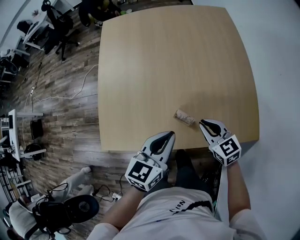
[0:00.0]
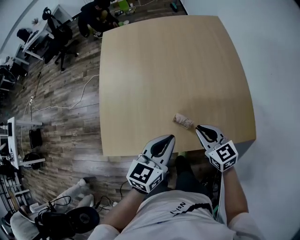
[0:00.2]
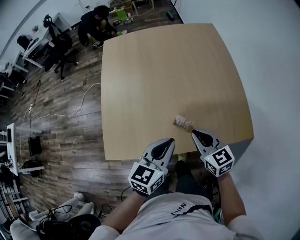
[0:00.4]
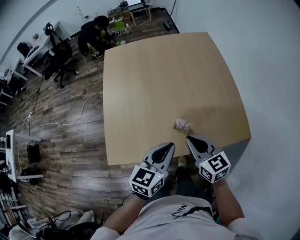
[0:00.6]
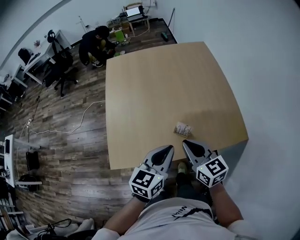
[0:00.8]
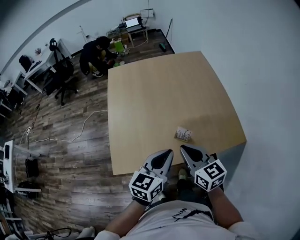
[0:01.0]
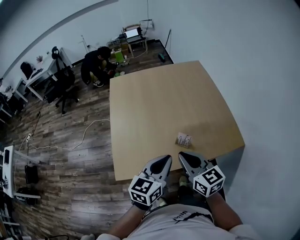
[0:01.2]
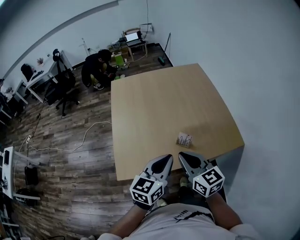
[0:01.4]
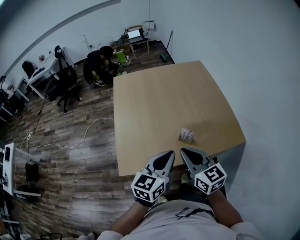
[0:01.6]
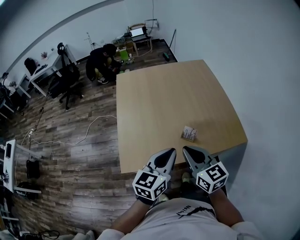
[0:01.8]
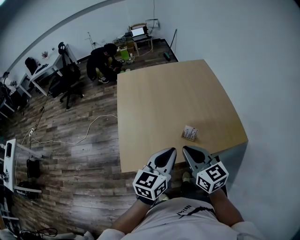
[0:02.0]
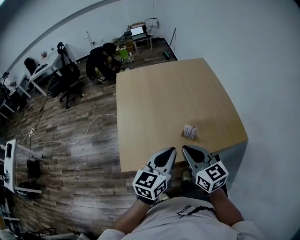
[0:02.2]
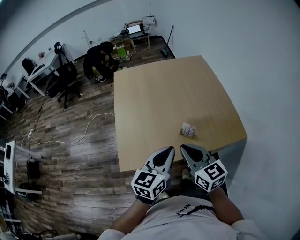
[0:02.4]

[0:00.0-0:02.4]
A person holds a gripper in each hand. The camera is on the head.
0:00.0 to 0:01.2: The right gripper heads upward, to the left and backward, covering some 30 cm, and changes its angle by some 20 degrees. Meanwhile the left gripper is displaced upward, backward and to the left by approximately 15 cm.
0:01.2 to 0:02.4: There are only small adjustments of the grippers.

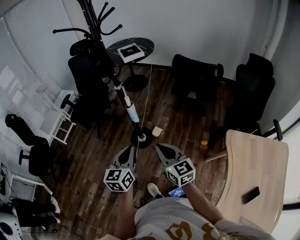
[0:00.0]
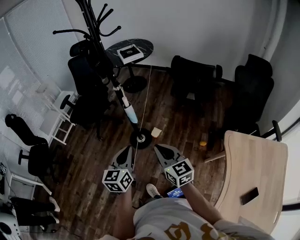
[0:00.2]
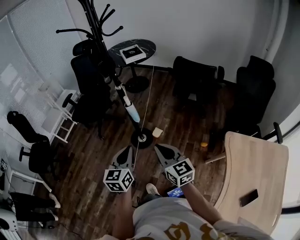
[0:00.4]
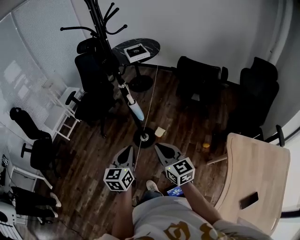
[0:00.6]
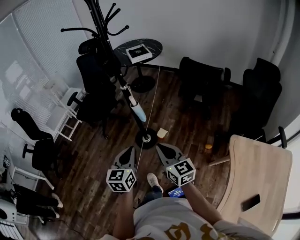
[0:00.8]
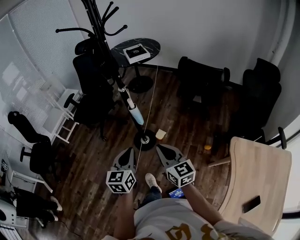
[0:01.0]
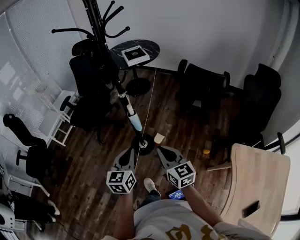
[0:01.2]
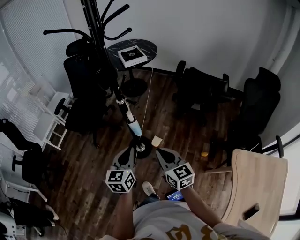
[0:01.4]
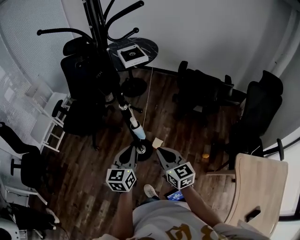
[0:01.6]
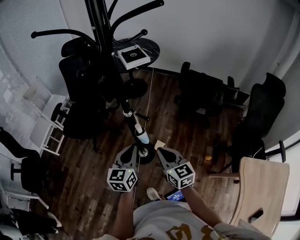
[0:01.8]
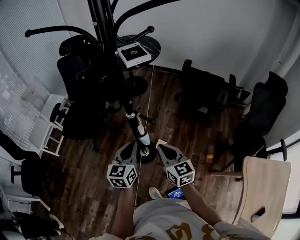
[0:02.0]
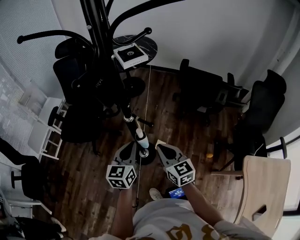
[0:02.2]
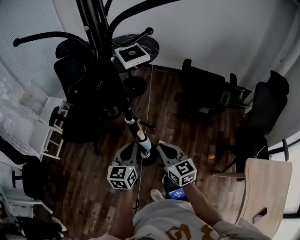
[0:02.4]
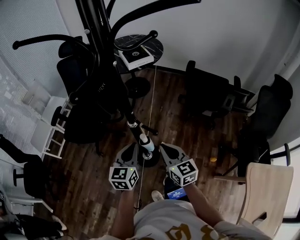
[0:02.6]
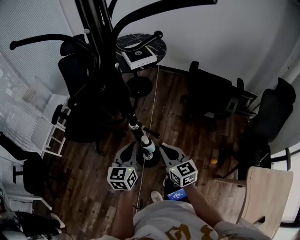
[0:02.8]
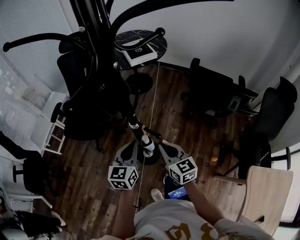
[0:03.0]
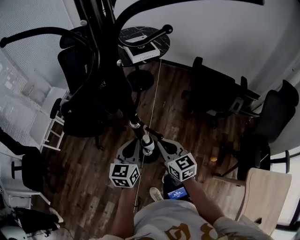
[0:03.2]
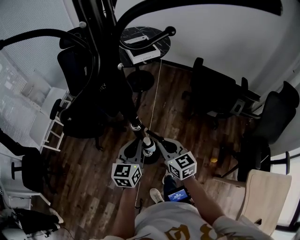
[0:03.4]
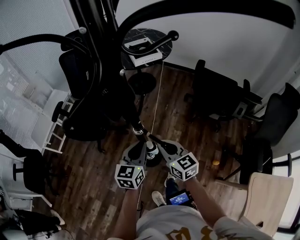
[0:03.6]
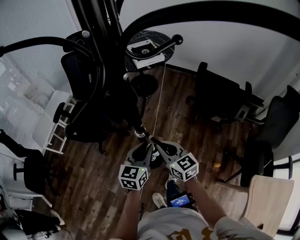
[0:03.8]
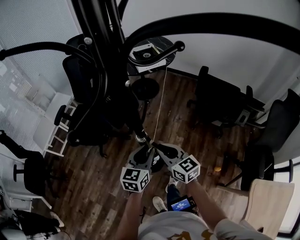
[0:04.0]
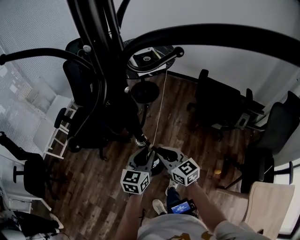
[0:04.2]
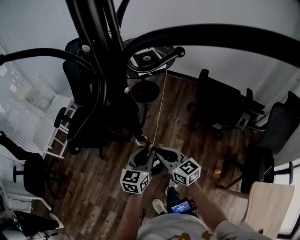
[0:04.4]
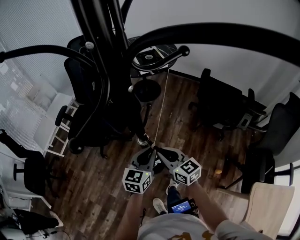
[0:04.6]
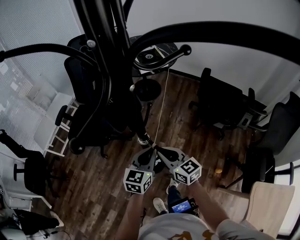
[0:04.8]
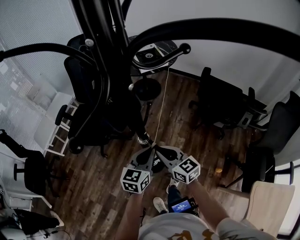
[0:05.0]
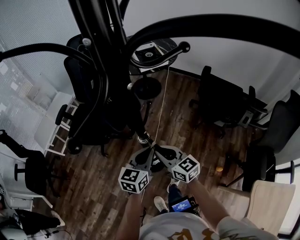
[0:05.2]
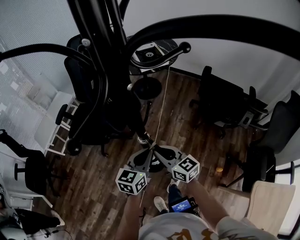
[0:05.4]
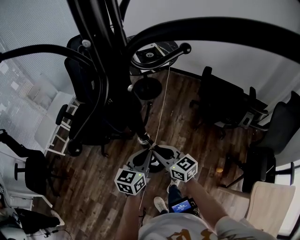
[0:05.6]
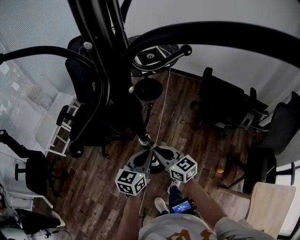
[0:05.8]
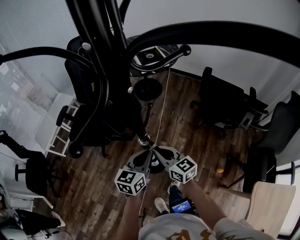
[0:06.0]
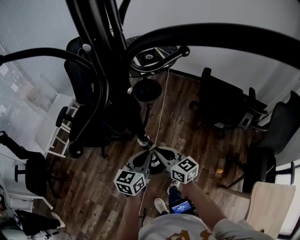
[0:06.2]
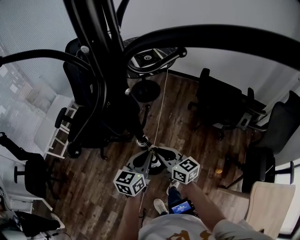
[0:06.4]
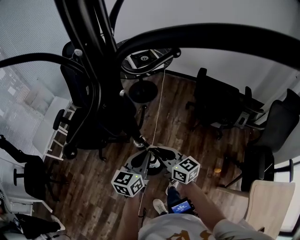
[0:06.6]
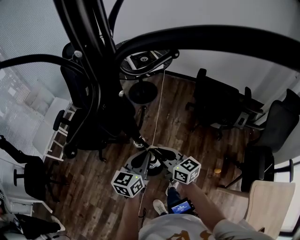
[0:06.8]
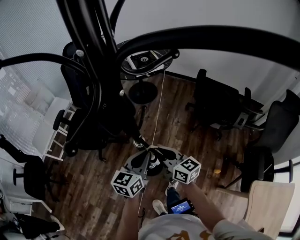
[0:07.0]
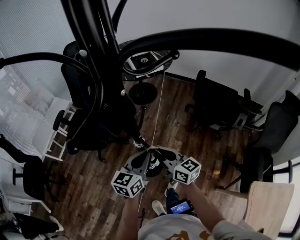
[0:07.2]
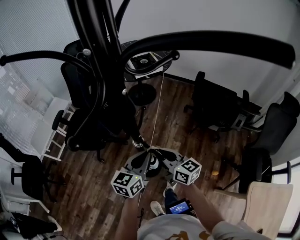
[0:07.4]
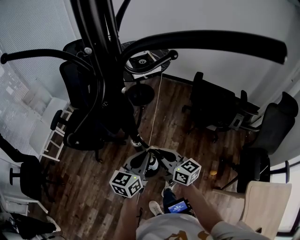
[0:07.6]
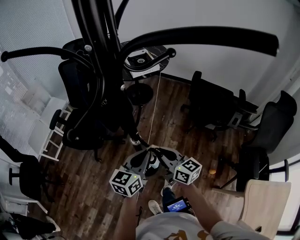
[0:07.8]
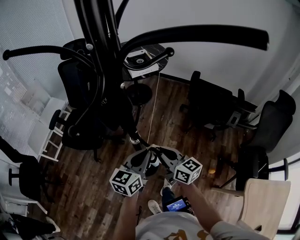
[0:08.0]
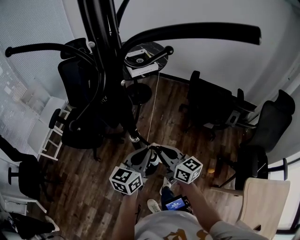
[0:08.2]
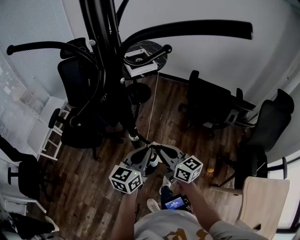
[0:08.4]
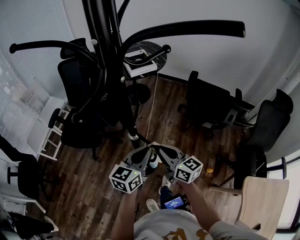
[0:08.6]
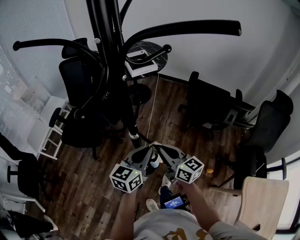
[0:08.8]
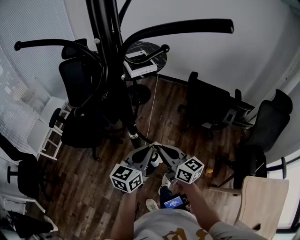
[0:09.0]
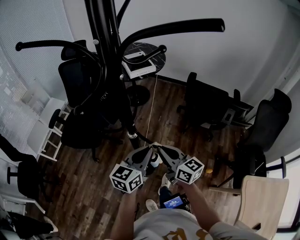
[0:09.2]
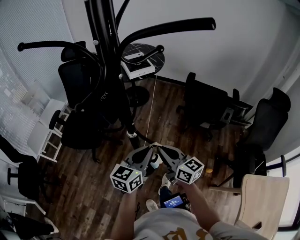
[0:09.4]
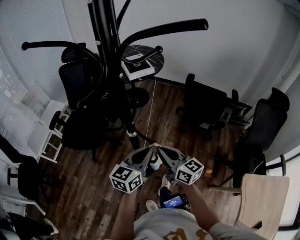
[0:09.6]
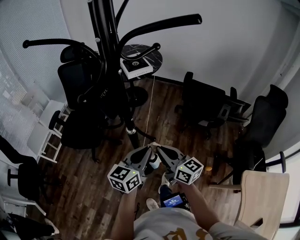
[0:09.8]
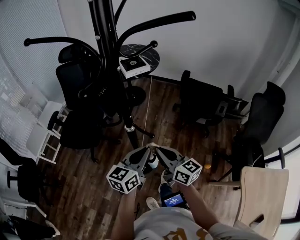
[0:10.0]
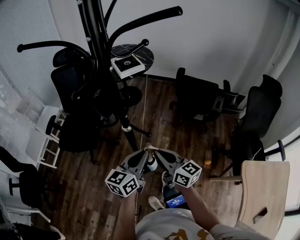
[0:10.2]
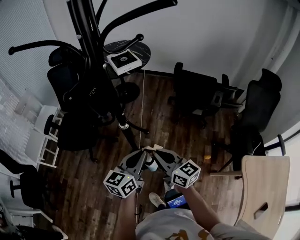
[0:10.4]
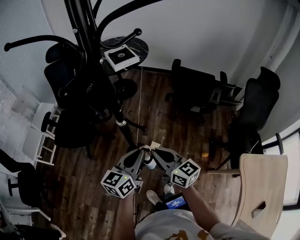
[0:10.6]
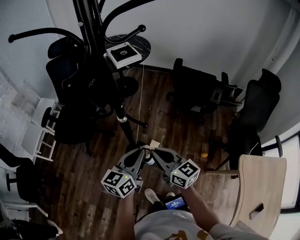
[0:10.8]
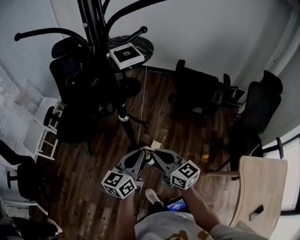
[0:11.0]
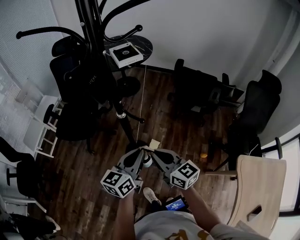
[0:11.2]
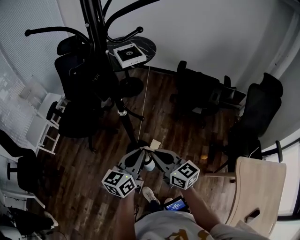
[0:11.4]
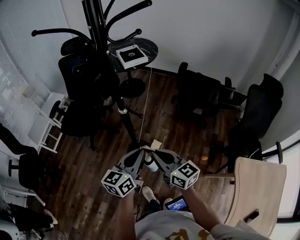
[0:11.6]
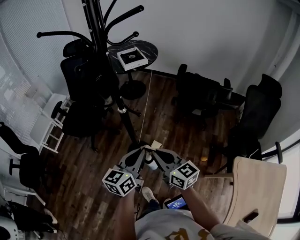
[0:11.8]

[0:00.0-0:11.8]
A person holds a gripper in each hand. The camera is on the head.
0:00.0 to 0:01.4: The grippers both shift forward by roughly 15 cm.
0:01.4 to 0:03.0: The two grippers go about 25 cm forward.
0:03.0 to 0:04.4: The right gripper moves forward, some 5 cm. The left gripper moves about 5 cm.
0:04.4 to 0:07.4: There are only small adjustments of the grippers.
0:07.4 to 0:08.8: The left gripper changes place by about 5 cm; the right gripper ends up approximately 5 cm from where it was.
0:08.8 to 0:10.4: The two grippers go about 10 cm backward.
0:10.4 to 0:11.8: The grippers both shift backward by approximately 10 cm.

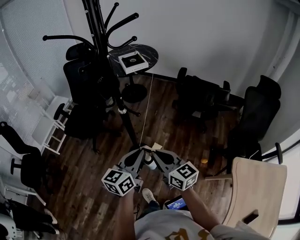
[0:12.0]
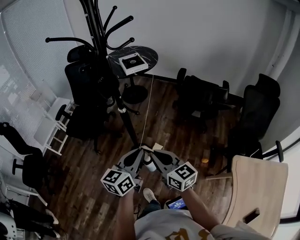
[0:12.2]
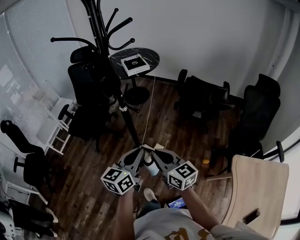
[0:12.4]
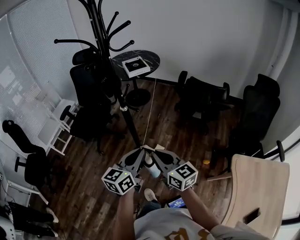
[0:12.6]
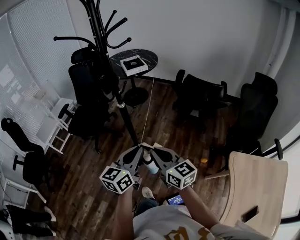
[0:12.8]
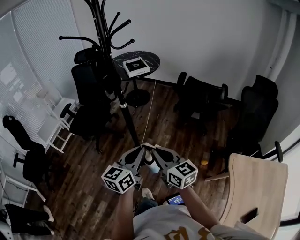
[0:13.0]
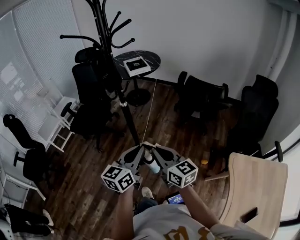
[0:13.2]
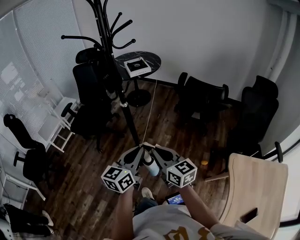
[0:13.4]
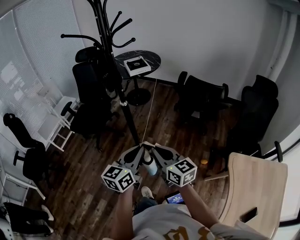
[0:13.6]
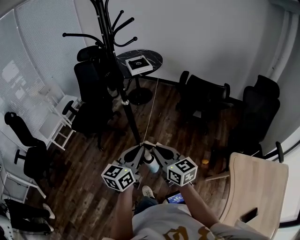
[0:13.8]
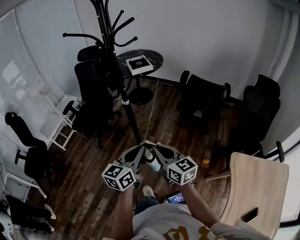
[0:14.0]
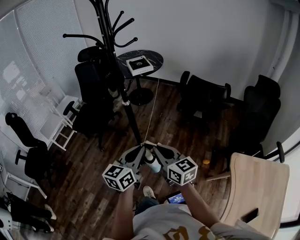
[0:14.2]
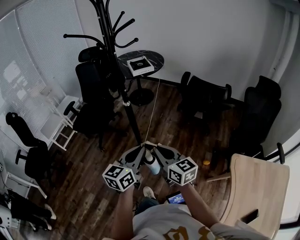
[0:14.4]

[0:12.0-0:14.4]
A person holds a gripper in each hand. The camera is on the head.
0:12.0 to 0:13.2: The grippers both shift backward by some 10 cm.
0:13.2 to 0:14.4: The grippers stay close to where they were, moving slightly.

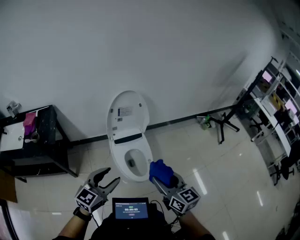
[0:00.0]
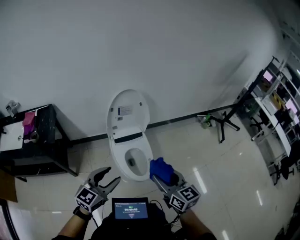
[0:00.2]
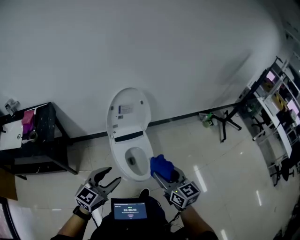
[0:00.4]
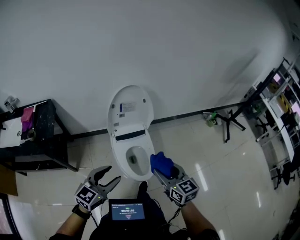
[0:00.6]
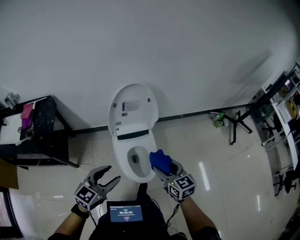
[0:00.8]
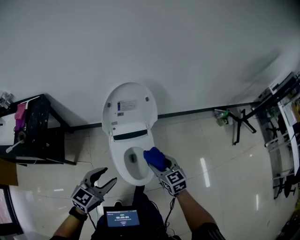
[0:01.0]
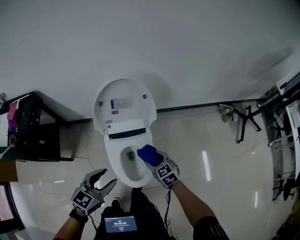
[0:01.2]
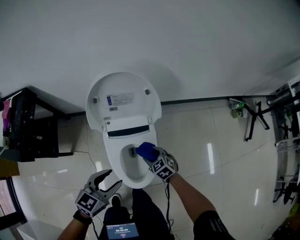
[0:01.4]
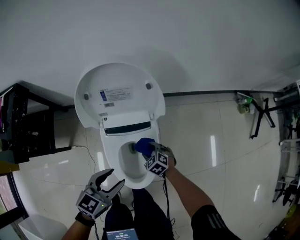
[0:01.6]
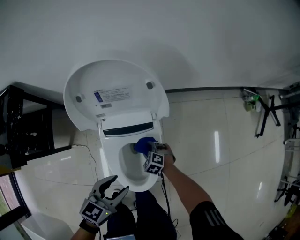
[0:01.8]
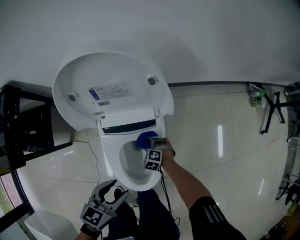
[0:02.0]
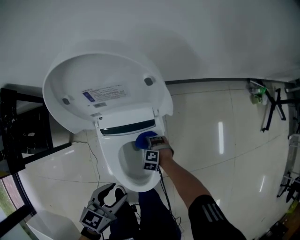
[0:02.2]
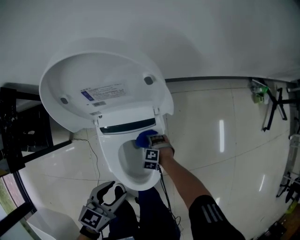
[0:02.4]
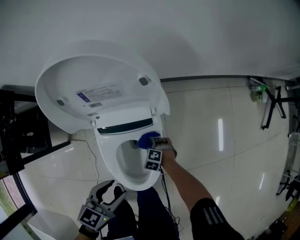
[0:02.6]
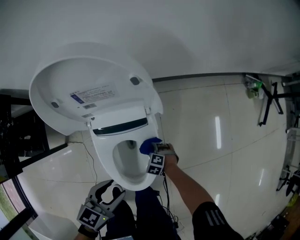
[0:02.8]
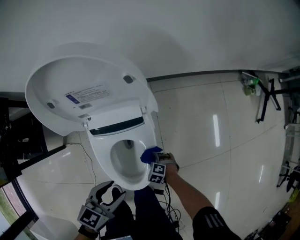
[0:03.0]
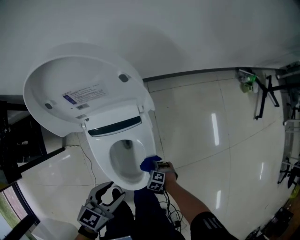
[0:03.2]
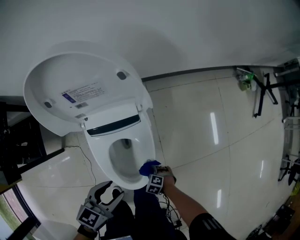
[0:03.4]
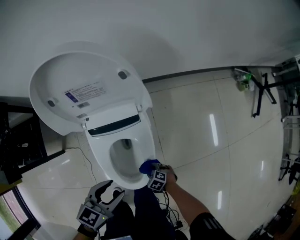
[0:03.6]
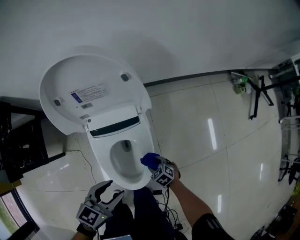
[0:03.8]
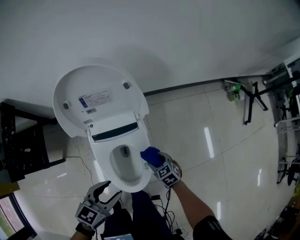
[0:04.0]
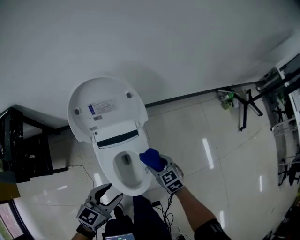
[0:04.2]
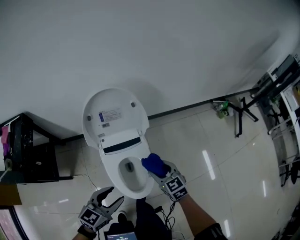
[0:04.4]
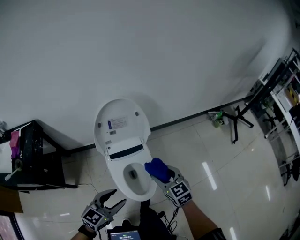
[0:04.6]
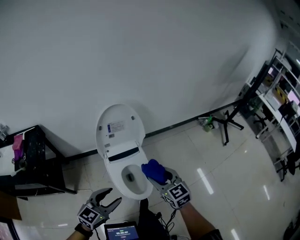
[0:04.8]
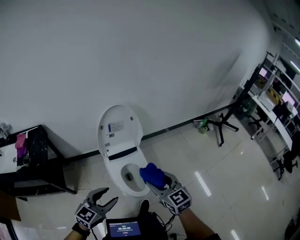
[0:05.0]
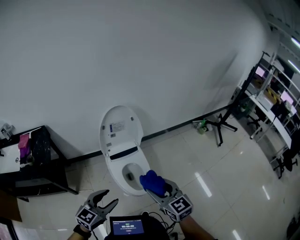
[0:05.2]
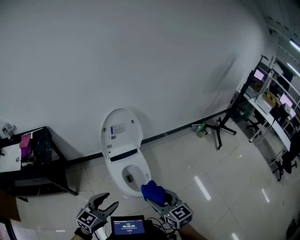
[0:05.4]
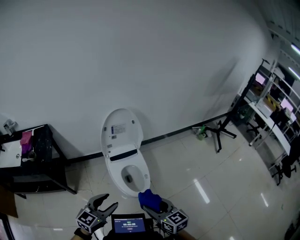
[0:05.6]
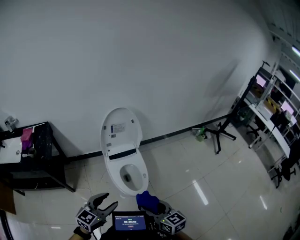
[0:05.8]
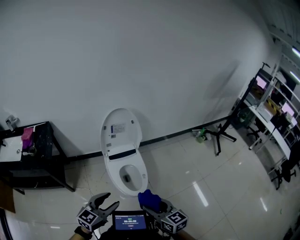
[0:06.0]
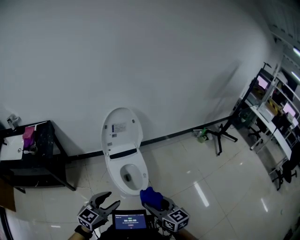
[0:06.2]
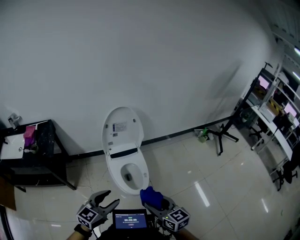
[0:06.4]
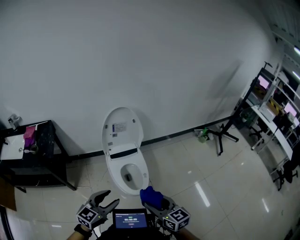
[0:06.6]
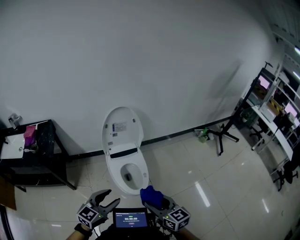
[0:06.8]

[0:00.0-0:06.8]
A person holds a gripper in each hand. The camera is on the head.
0:00.0 to 0:01.4: The right gripper moves downward and forward, about 60 cm, and points its fingers some 40 degrees further downward. The left gripper is displaced forward and downward by approximately 35 cm, and turns by approximately 30 degrees.
0:01.4 to 0:02.8: The right gripper heads downward, covering approximately 25 cm, and rotates about 40 degrees. The left gripper is displaced downward by approximately 15 cm.
0:02.8 to 0:04.0: The right gripper moves upward, about 15 cm, and rotates about 50 degrees; the left gripper moves upward, some 5 cm.
0:04.0 to 0:05.4: The left gripper goes about 40 cm backward and upward, and changes its angle by approximately 30 degrees; the right gripper travels upward and backward by approximately 60 cm, and angles its fingers upward, by some 40 degrees.
0:05.4 to 0:06.8: The right gripper moves backward, about 5 cm, while the left gripper changes place by approximately 5 cm.
